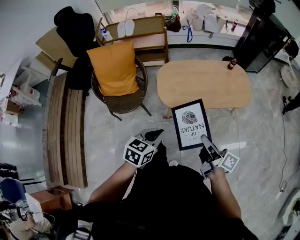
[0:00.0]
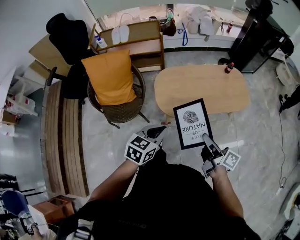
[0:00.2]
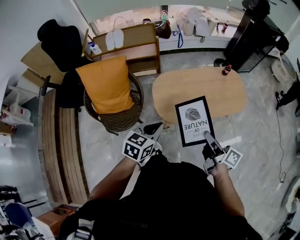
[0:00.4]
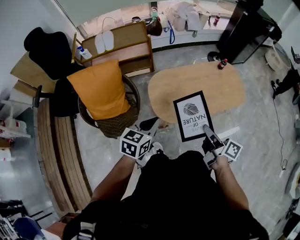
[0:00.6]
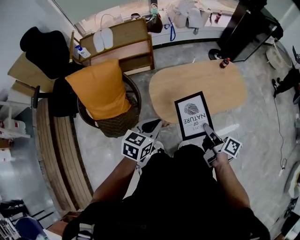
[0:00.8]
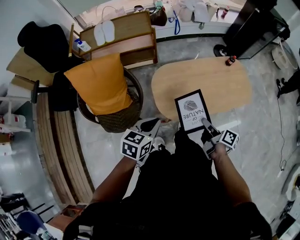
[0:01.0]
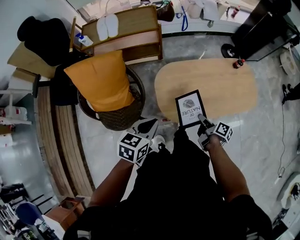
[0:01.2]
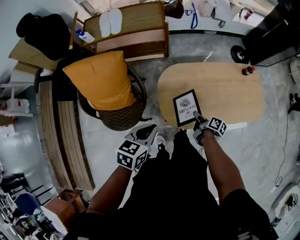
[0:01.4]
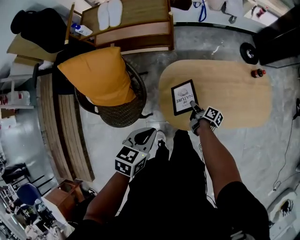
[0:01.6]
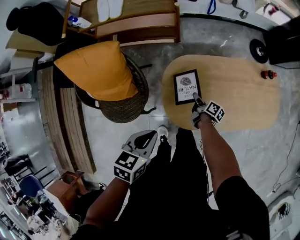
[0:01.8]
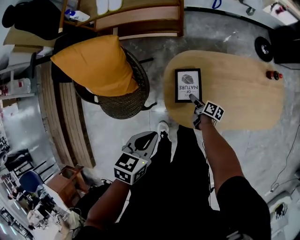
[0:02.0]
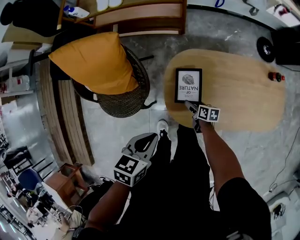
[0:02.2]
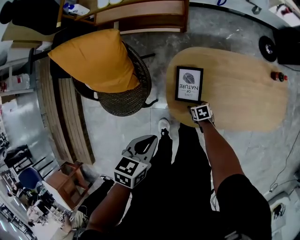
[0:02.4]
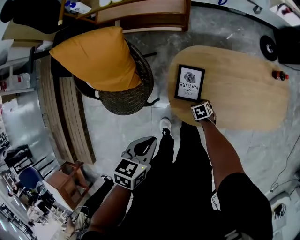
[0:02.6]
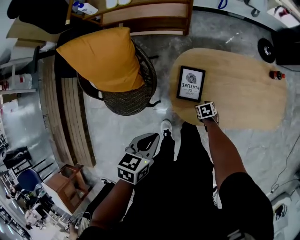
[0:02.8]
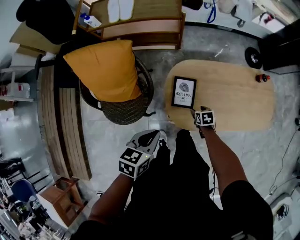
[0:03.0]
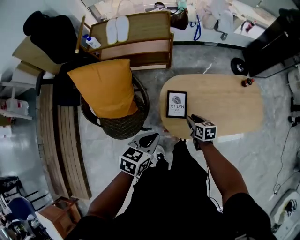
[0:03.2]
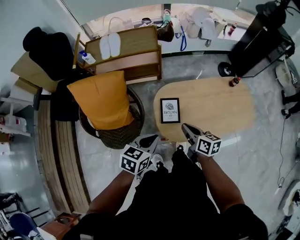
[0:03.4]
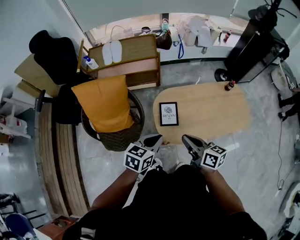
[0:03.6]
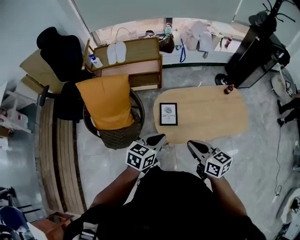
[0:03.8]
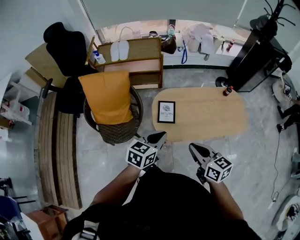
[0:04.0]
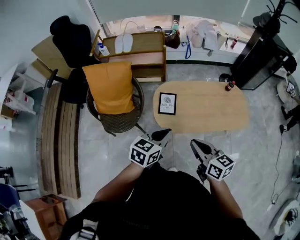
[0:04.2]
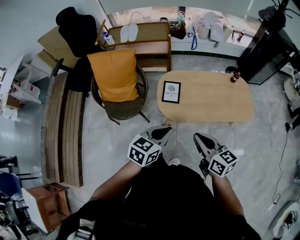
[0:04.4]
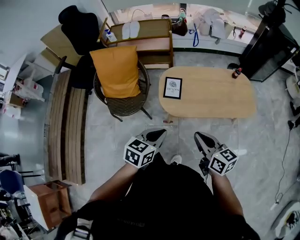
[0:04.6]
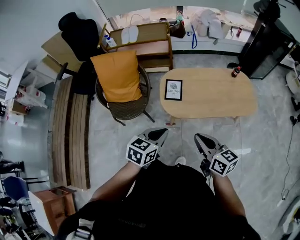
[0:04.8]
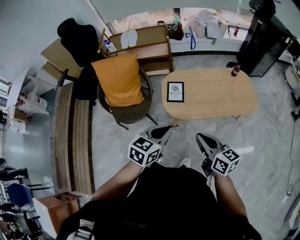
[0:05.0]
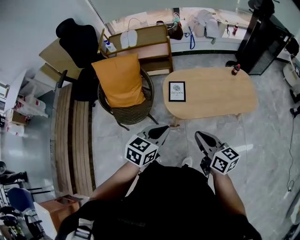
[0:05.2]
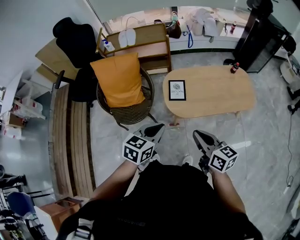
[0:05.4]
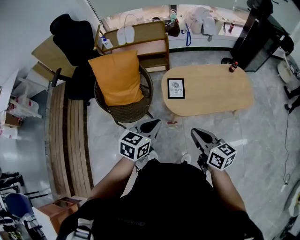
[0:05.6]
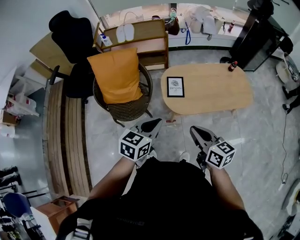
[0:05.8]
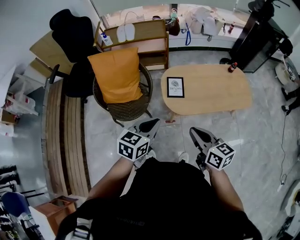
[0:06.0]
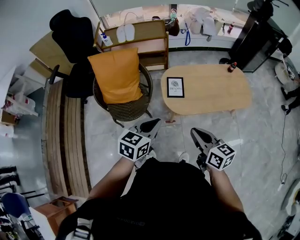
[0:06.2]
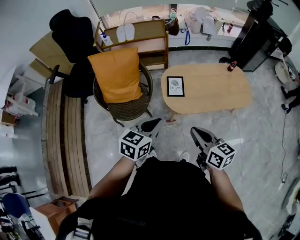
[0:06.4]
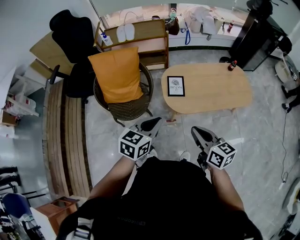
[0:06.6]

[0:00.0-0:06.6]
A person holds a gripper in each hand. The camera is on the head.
0:00.0 to 0:01.6: The left gripper is displaced forward by approximately 30 cm. The right gripper goes some 60 cm forward and downward, and swivels roughly 30 degrees.
0:01.6 to 0:03.2: The right gripper goes about 10 cm upward, twists some 50 degrees counterclockwise, seen from behind, and opens, then closes again.
0:03.2 to 0:05.0: The left gripper heads backward, upward and to the right, covering some 30 cm. Meanwhile the right gripper travels backward and upward by some 50 cm, tilts its fingers approximately 30 degrees upward, and closes.
0:05.0 to 0:06.6: Both grippers move to the left, about 10 cm.

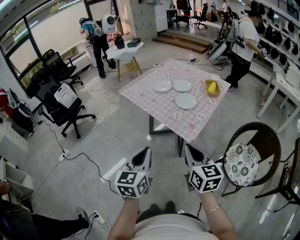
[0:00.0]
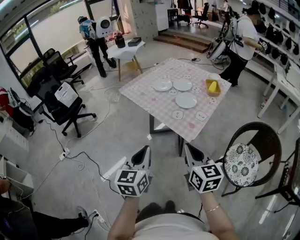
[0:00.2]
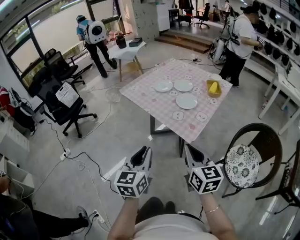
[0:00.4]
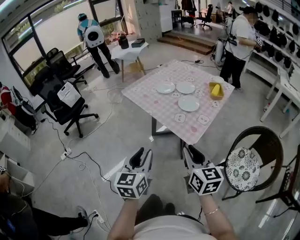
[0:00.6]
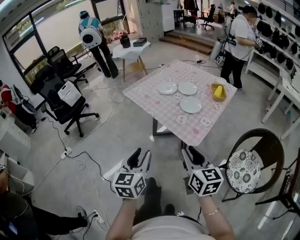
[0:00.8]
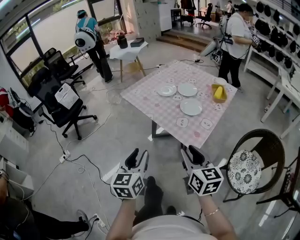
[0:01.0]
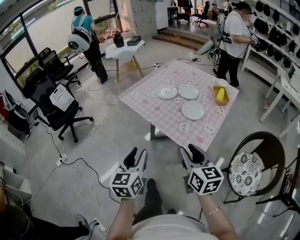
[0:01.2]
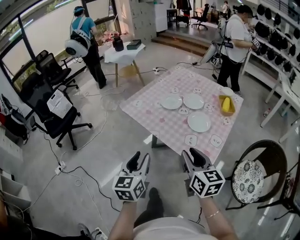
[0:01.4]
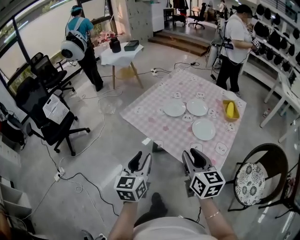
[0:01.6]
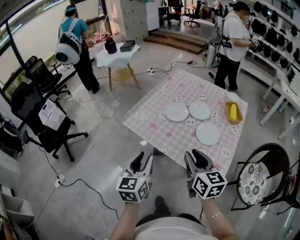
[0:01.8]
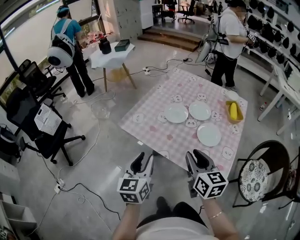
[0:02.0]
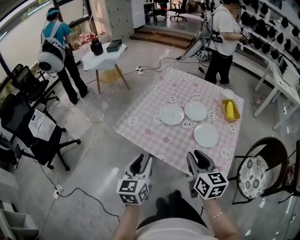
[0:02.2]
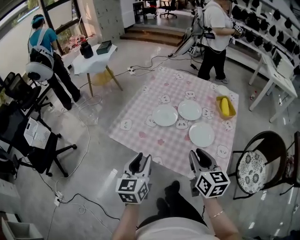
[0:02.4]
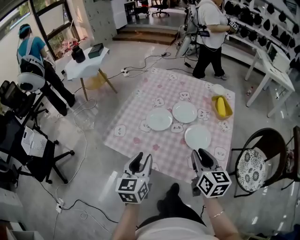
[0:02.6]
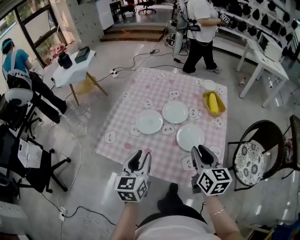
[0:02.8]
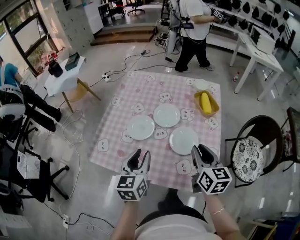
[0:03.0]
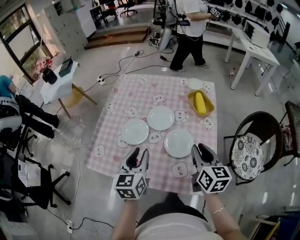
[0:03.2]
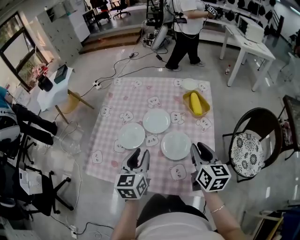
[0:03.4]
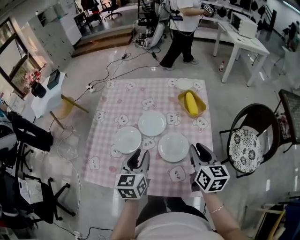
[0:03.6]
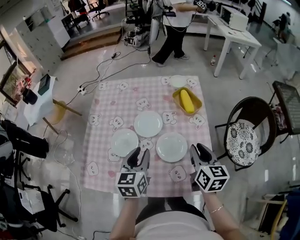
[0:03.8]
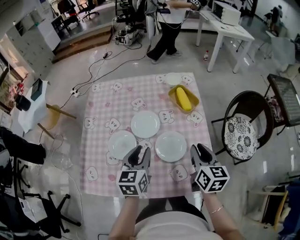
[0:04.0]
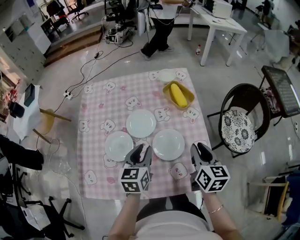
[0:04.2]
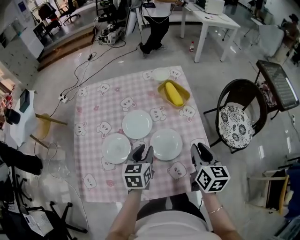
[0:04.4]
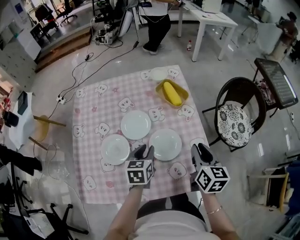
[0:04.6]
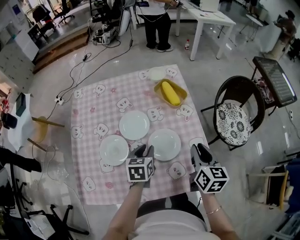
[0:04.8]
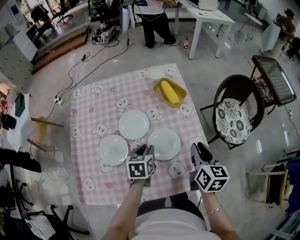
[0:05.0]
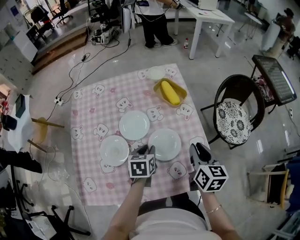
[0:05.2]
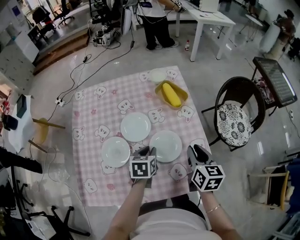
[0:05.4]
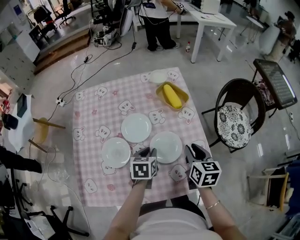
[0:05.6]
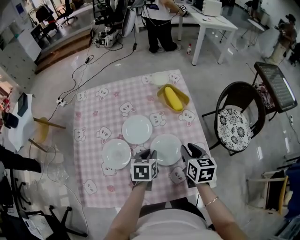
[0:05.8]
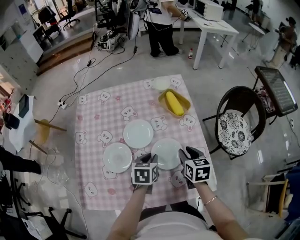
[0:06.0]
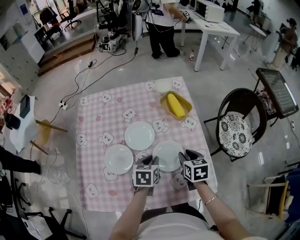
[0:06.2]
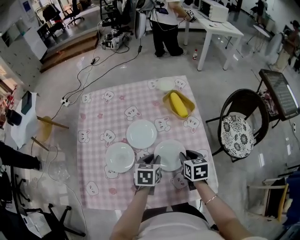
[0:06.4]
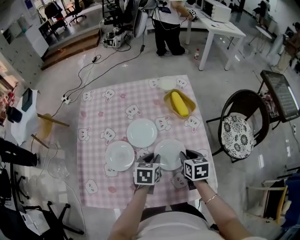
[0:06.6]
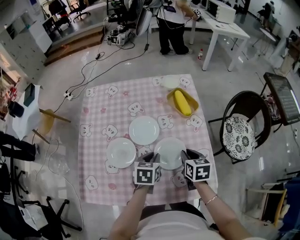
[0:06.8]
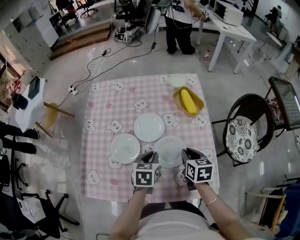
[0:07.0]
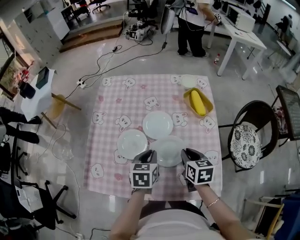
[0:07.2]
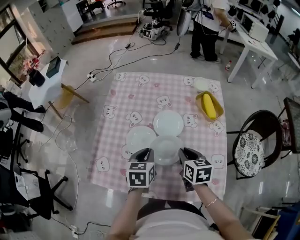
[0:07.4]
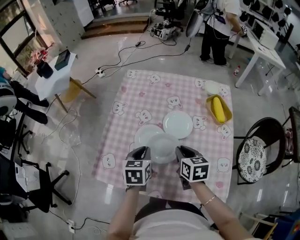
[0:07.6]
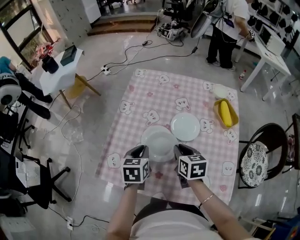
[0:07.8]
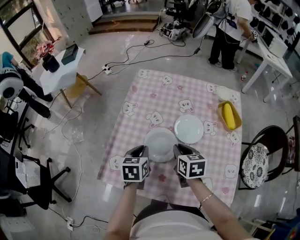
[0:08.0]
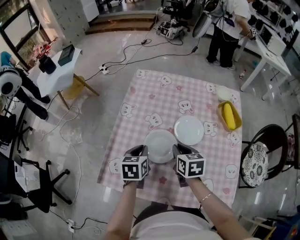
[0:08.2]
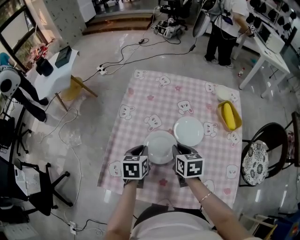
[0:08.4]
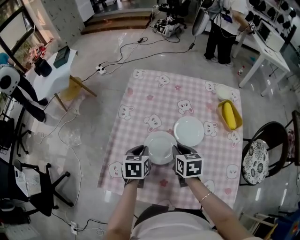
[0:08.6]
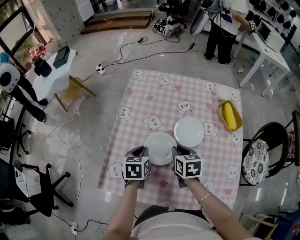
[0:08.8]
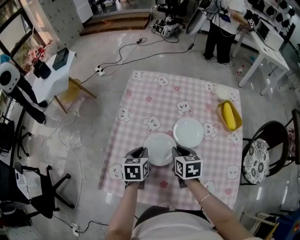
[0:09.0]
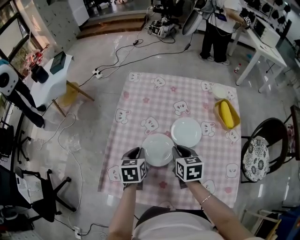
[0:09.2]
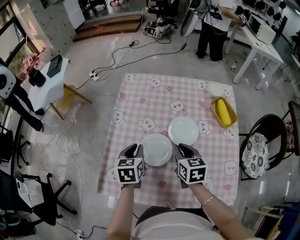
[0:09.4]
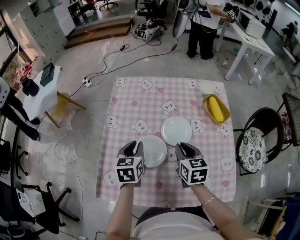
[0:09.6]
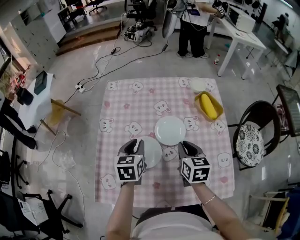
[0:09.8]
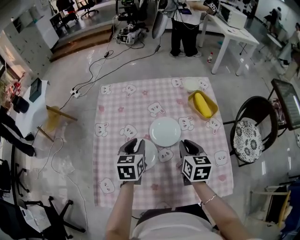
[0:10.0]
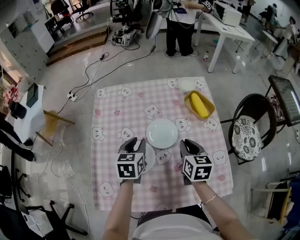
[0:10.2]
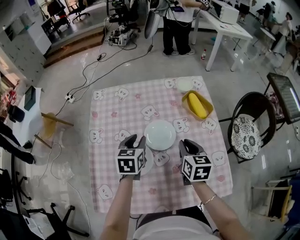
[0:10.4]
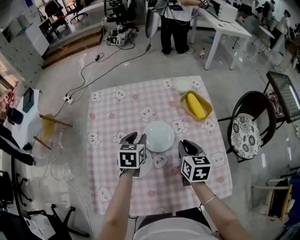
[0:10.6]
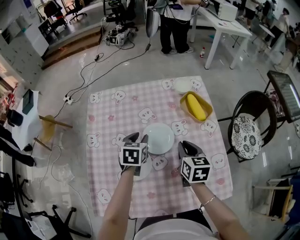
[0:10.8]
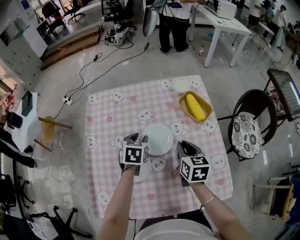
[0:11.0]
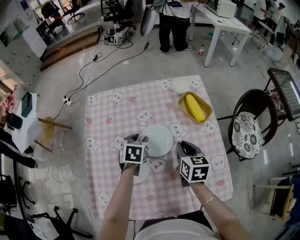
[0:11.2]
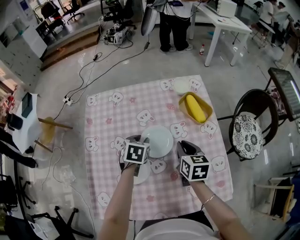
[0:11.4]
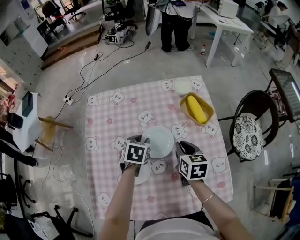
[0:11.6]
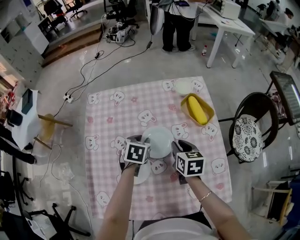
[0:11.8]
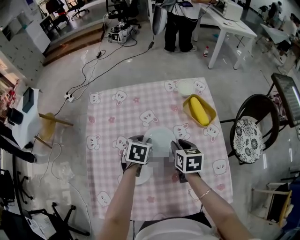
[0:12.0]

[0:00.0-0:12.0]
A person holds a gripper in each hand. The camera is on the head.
0:00.0 to 0:01.6: The grippers both shift forward by roughly 30 cm. The left gripper opens up. The right gripper opens up.
0:01.6 to 0:03.0: The left gripper changes place by approximately 30 cm, and turns by approximately 20 degrees; the right gripper shifts by some 25 cm, and turns by approximately 30 degrees.
0:03.0 to 0:04.4: The right gripper changes place by approximately 10 cm, and changes its angle by about 30 degrees; the left gripper ends up roughly 20 cm from where it was, and swivels roughly 30 degrees.
0:04.4 to 0:06.0: The right gripper moves downward, about 10 cm. Meanwhile the left gripper shifts some 5 cm downward.
0:06.0 to 0:07.6: The right gripper ends up approximately 20 cm from where it was, and swivels roughly 20 degrees, while the left gripper ends up approximately 20 cm from where it was, and swivels about 30 degrees.
0:07.6 to 0:09.0: The right gripper goes approximately 10 cm forward and to the left, while the left gripper goes roughly 10 cm forward, to the left and downward.
0:09.0 to 0:10.4: The right gripper is displaced to the right by about 15 cm, and changes its angle by some 30 degrees, while the left gripper travels to the right, forward and upward by roughly 15 cm, turns by approximately 20 degrees, and opens up.
0:10.4 to 0:12.0: The two grippers go roughly 10 cm downward and forward. The left gripper turns by about 20 degrees.

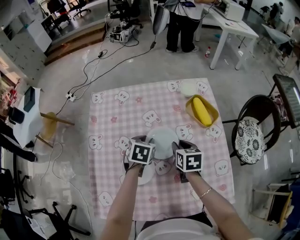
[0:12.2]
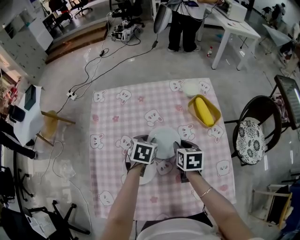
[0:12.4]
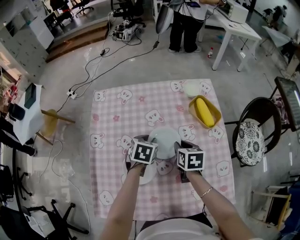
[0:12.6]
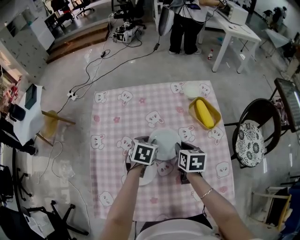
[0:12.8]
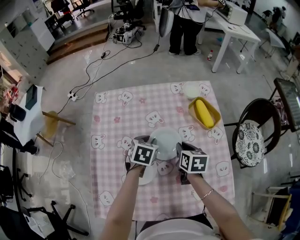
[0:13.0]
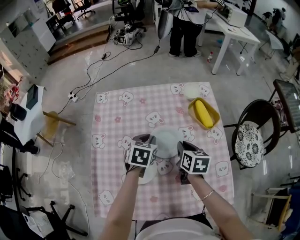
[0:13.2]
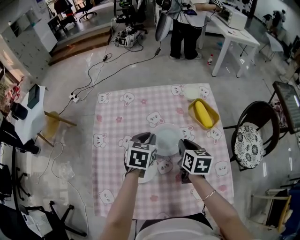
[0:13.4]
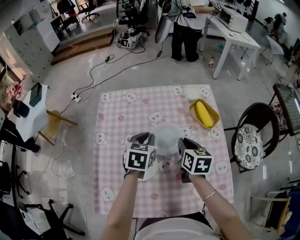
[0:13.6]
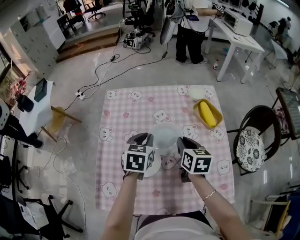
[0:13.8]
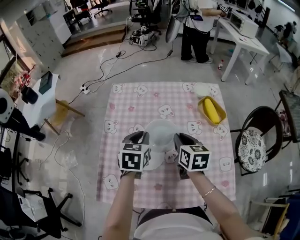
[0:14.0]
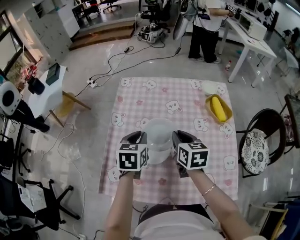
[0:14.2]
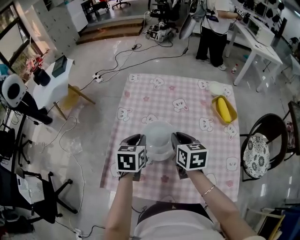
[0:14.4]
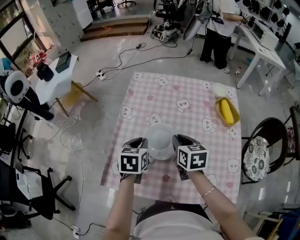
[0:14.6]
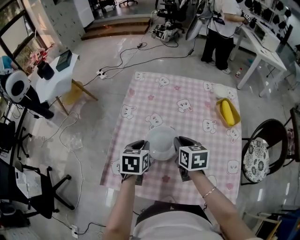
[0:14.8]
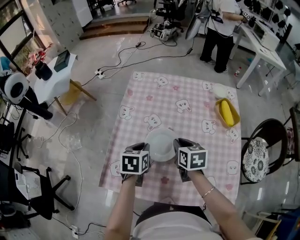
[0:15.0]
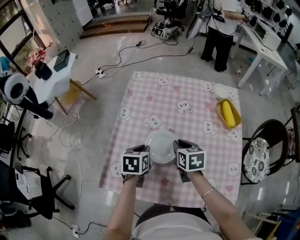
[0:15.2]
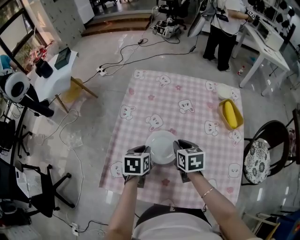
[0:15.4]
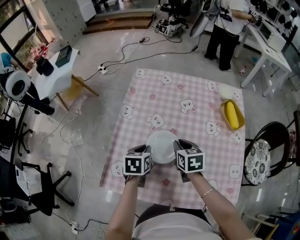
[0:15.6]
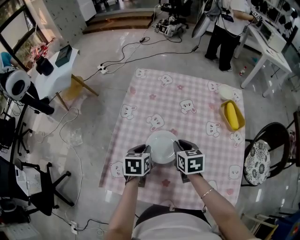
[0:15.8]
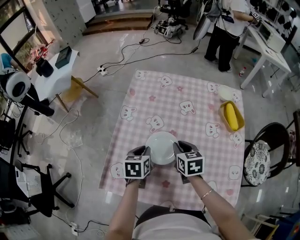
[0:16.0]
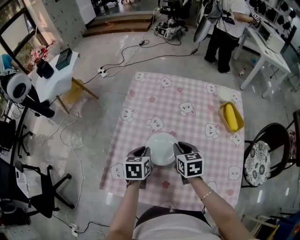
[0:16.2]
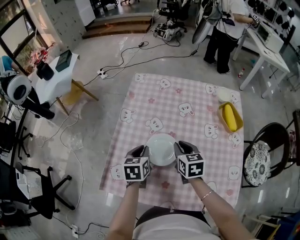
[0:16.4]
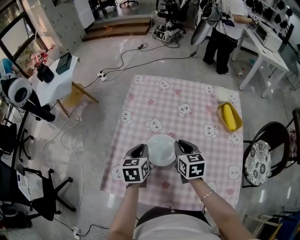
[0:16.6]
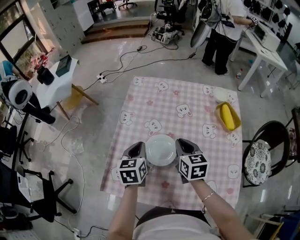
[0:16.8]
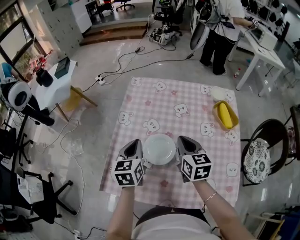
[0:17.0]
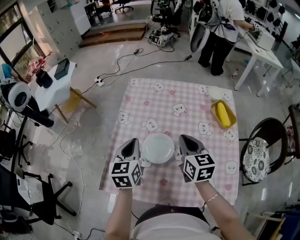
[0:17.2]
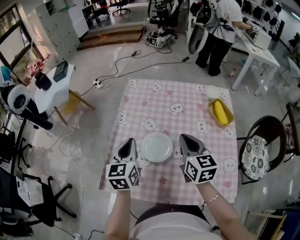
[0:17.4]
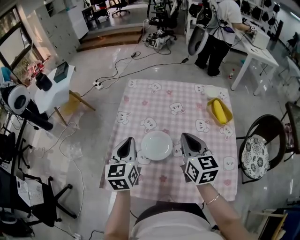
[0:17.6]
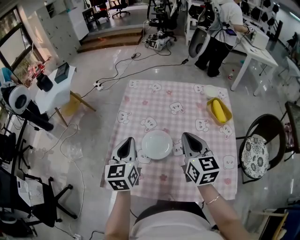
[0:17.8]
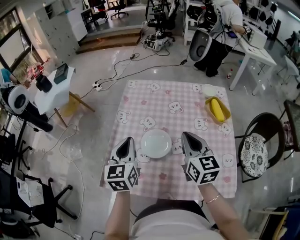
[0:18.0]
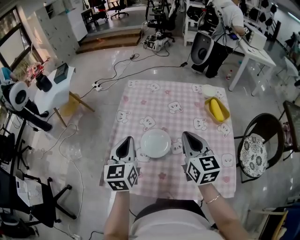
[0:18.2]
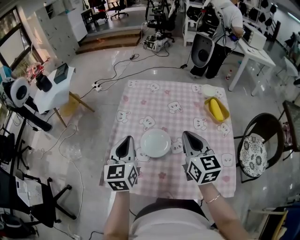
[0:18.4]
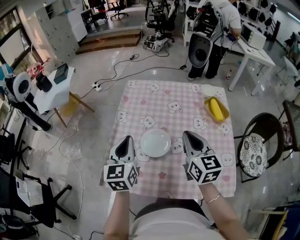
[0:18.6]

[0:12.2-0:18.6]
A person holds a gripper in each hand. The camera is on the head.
0:12.2 to 0:13.8: The left gripper heads upward and backward, covering roughly 10 cm. The right gripper travels upward by some 10 cm.
0:13.8 to 0:15.4: The left gripper heads to the left, backward and downward, covering some 20 cm, and turns by roughly 30 degrees. Meanwhile the right gripper moves to the left and downward, roughly 15 cm, and rotates approximately 20 degrees.
0:15.4 to 0:17.0: Both grippers travel together upward, about 10 cm. The right gripper changes its angle by some 20 degrees. The left gripper rotates some 30 degrees.
0:17.0 to 0:18.6: The grippers both shift upward and backward by about 10 cm.
